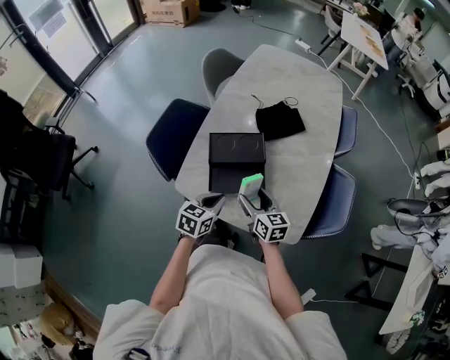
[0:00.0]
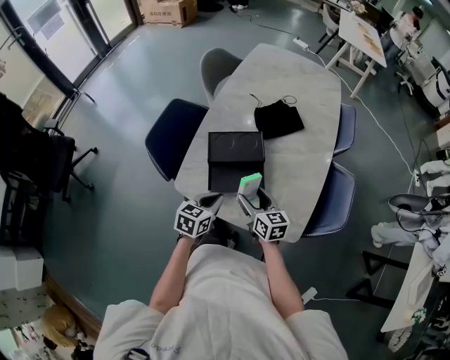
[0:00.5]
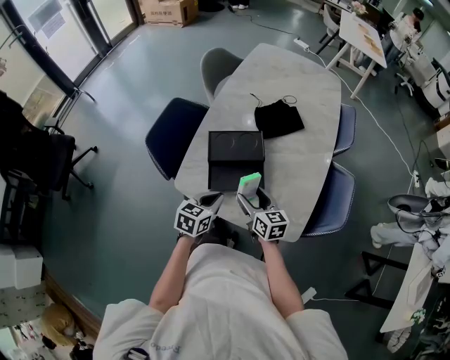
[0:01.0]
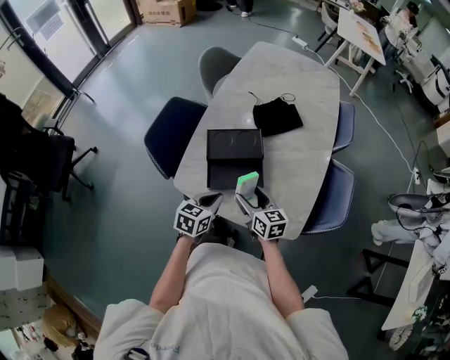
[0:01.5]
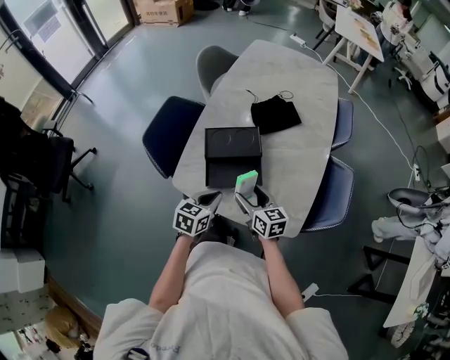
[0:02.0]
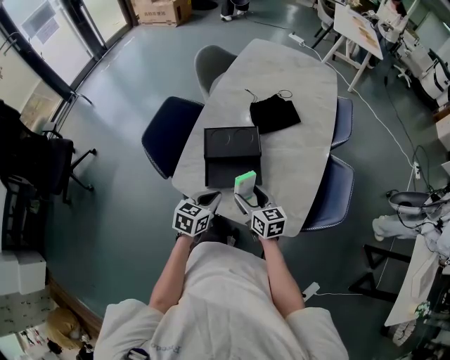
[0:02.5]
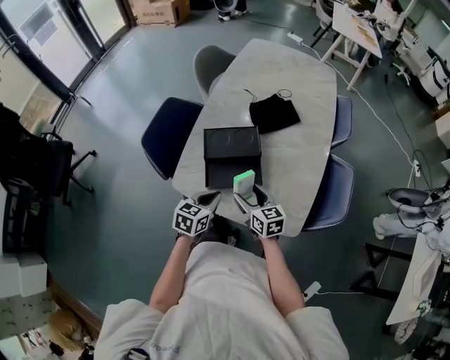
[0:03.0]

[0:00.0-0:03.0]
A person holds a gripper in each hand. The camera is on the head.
0:00.0 to 0:01.5: The two grippers keep their place.
0:01.5 to 0:03.0: The two grippers keep their place.

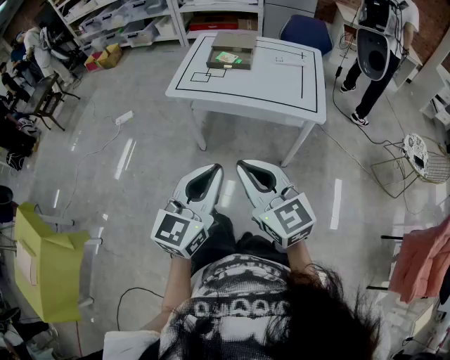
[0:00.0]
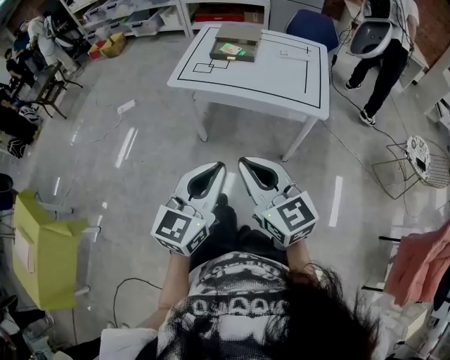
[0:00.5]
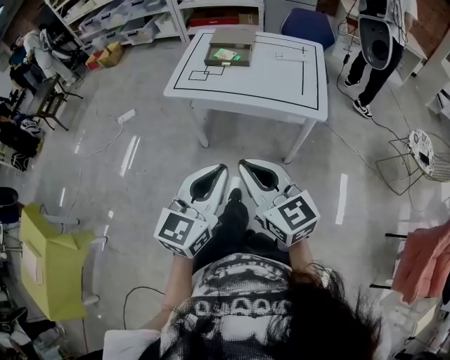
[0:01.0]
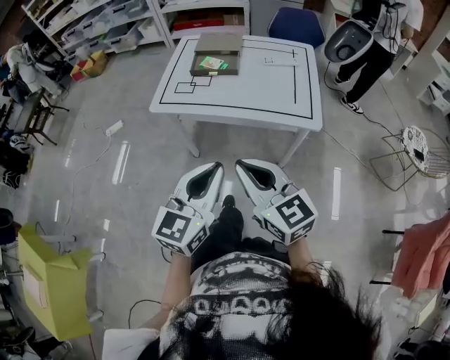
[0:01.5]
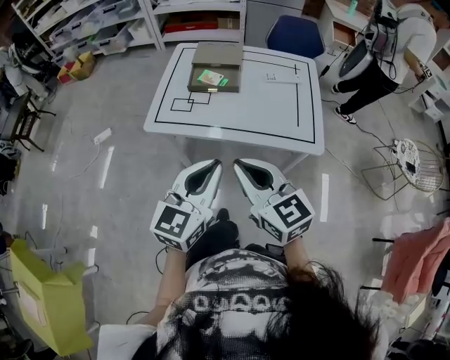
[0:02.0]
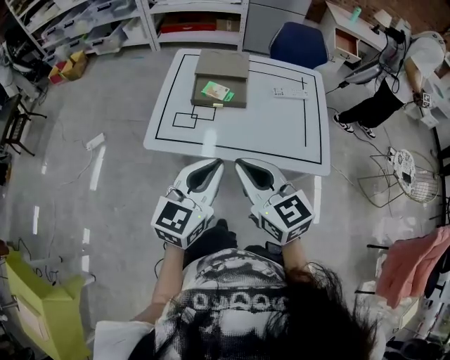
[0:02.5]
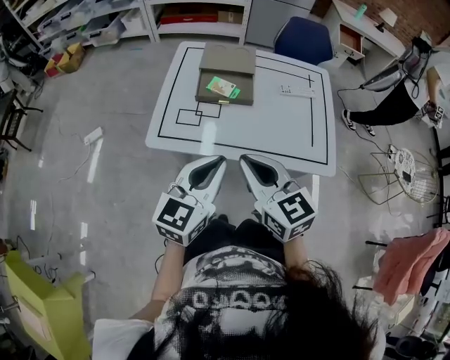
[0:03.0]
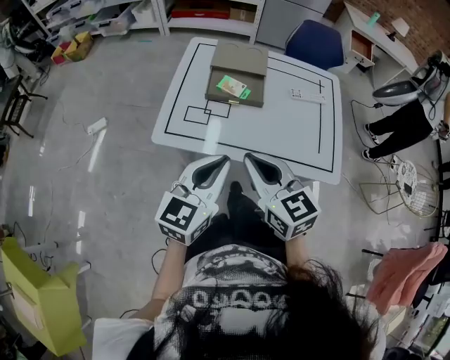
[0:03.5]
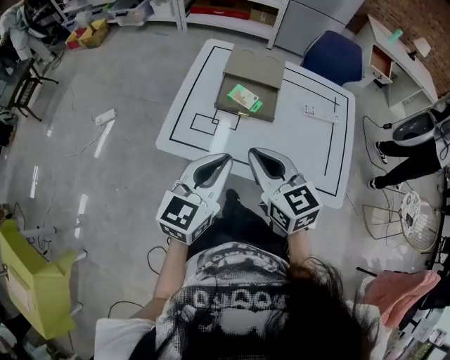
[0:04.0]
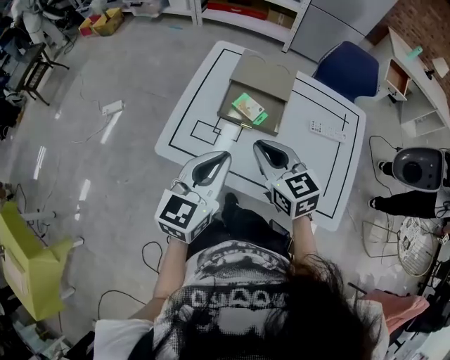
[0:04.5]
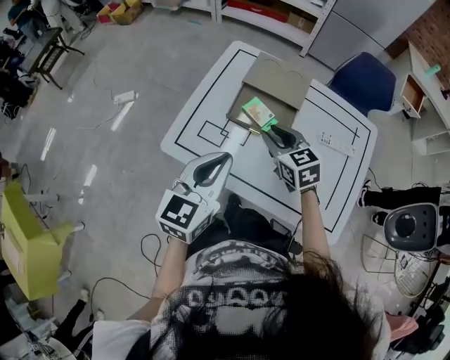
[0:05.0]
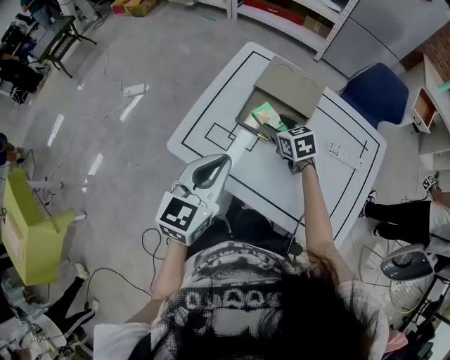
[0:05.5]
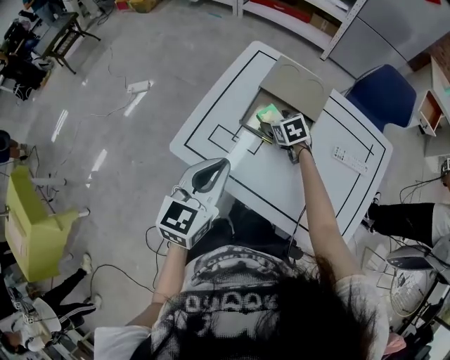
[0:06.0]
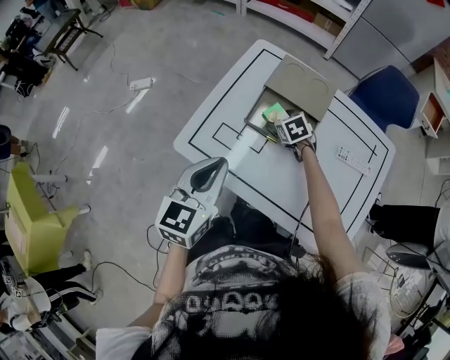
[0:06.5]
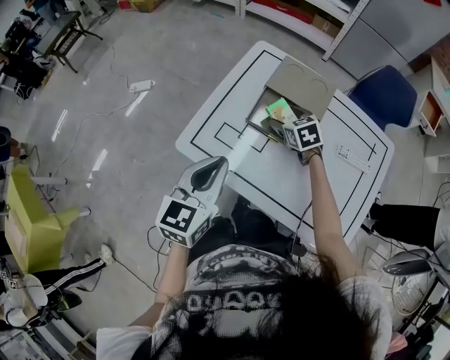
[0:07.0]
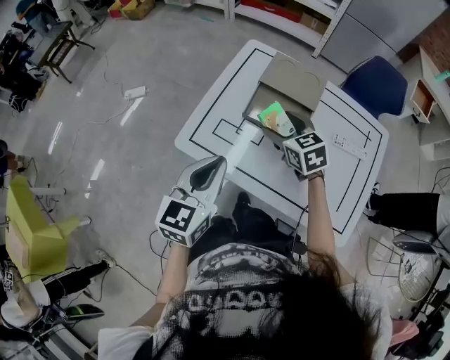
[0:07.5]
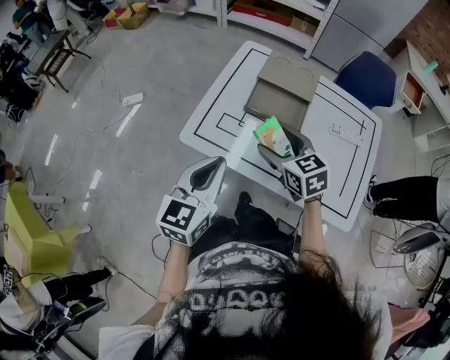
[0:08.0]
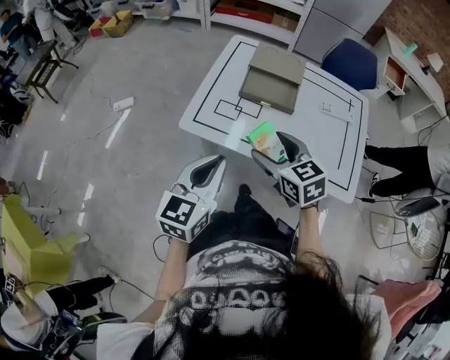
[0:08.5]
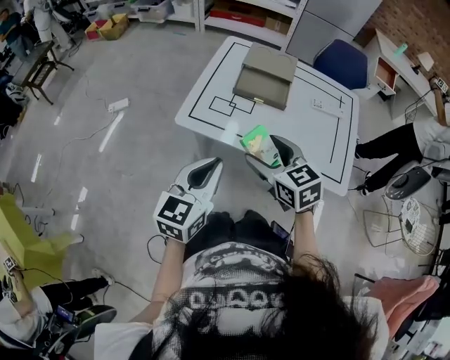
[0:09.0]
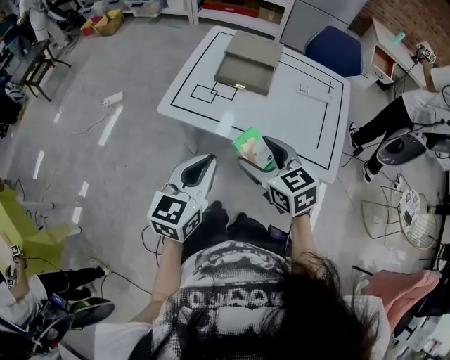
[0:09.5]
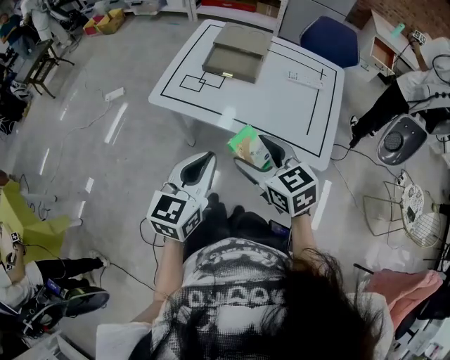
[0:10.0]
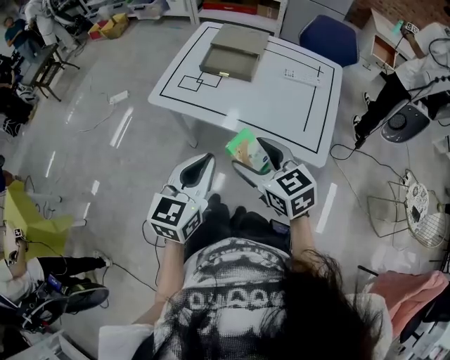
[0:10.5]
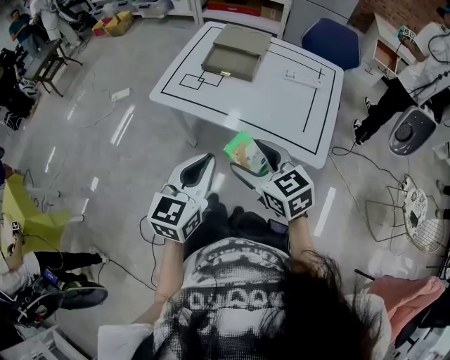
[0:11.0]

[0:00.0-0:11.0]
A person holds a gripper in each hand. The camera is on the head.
0:00.0 to 0:02.0: The grippers both shift forward by roughly 25 cm.
0:02.0 to 0:03.5: Both grippers move forward and to the left, some 20 cm.
0:03.5 to 0:05.5: The right gripper shifts some 40 cm forward and downward, turns by approximately 30 degrees, and opens. The left gripper heads forward, covering approximately 15 cm, and changes its angle by roughly 20 degrees.
0:05.5 to 0:07.5: The right gripper heads upward and backward, covering some 10 cm, while the left gripper changes place by some 5 cm.
0:07.5 to 0:09.0: The left gripper is displaced backward by some 20 cm. Meanwhile the right gripper is displaced backward by roughly 30 cm.
0:09.0 to 0:11.0: The left gripper heads to the right and backward, covering approximately 20 cm, while the right gripper shifts approximately 20 cm backward and to the right.

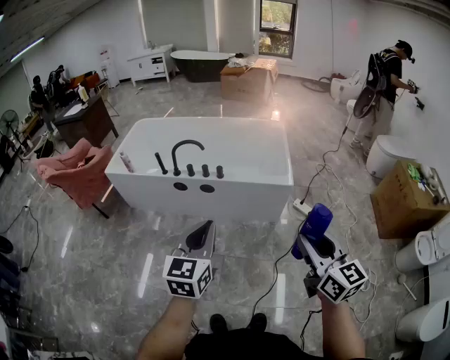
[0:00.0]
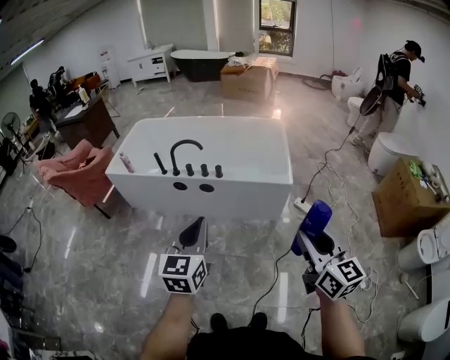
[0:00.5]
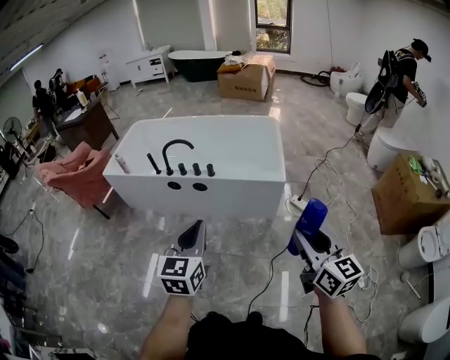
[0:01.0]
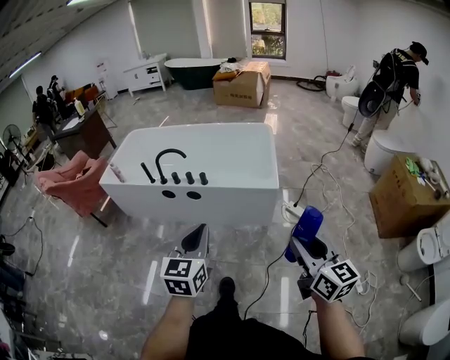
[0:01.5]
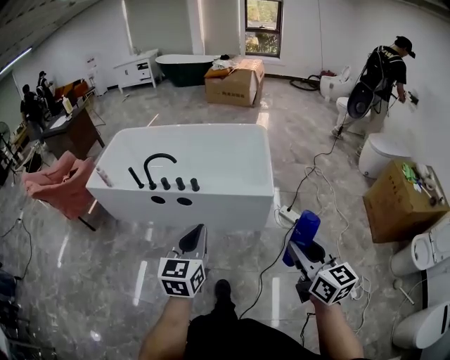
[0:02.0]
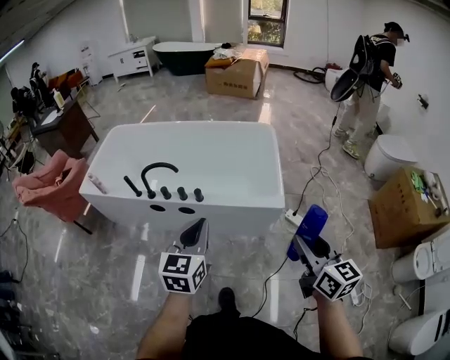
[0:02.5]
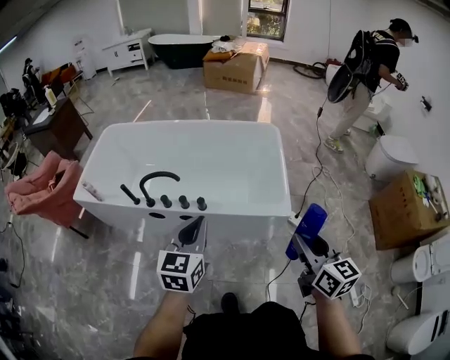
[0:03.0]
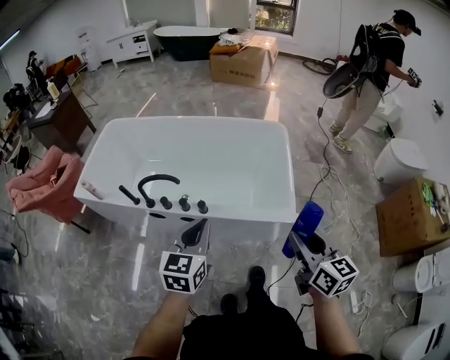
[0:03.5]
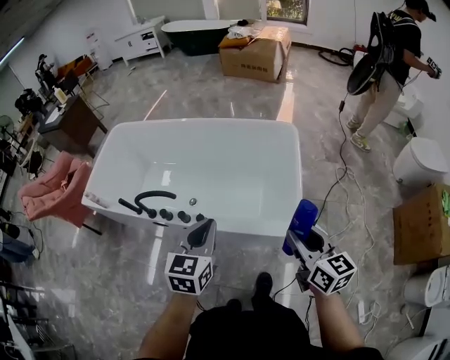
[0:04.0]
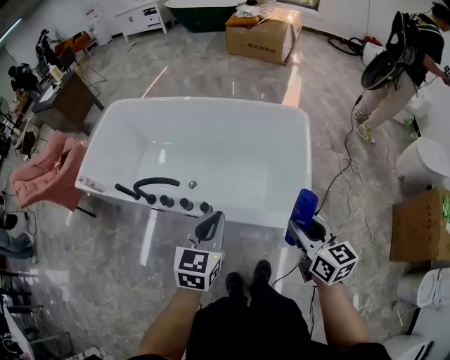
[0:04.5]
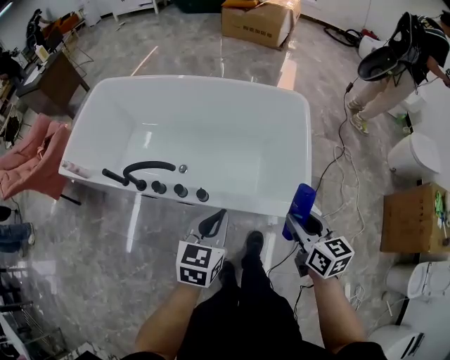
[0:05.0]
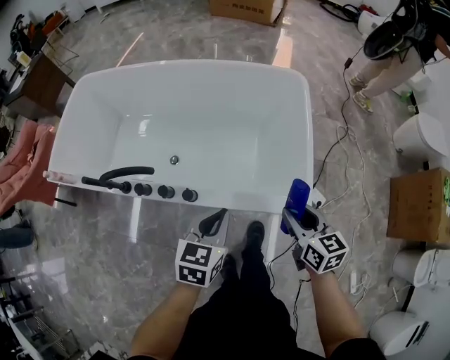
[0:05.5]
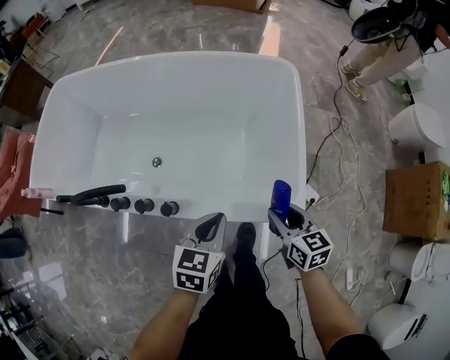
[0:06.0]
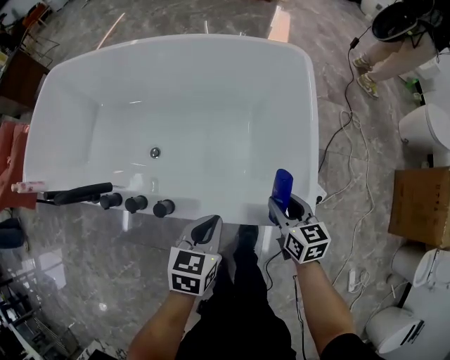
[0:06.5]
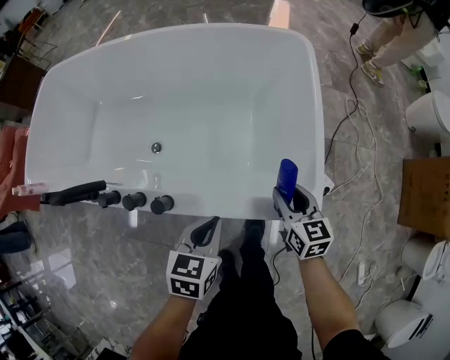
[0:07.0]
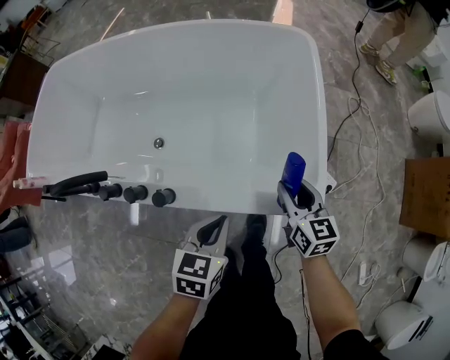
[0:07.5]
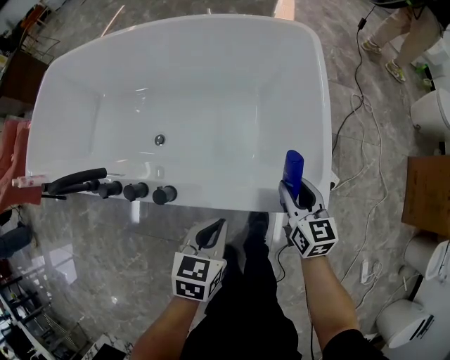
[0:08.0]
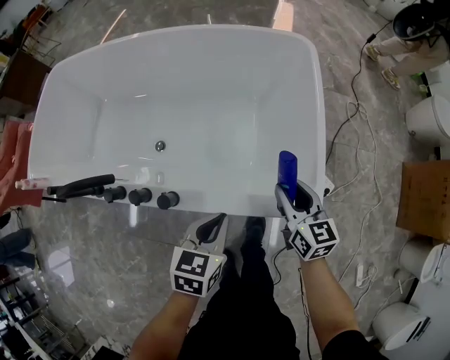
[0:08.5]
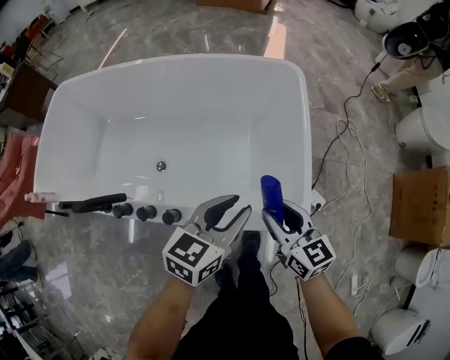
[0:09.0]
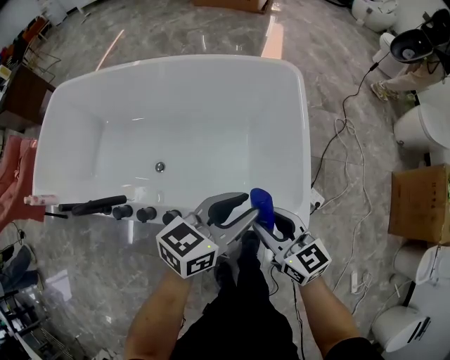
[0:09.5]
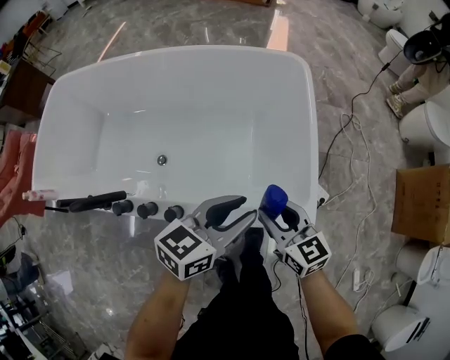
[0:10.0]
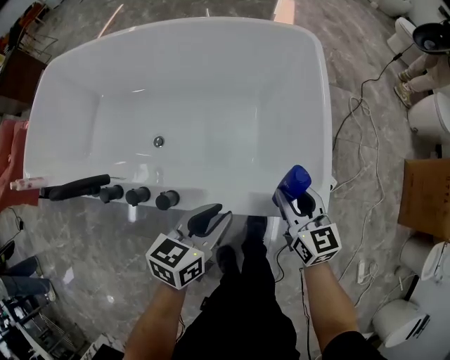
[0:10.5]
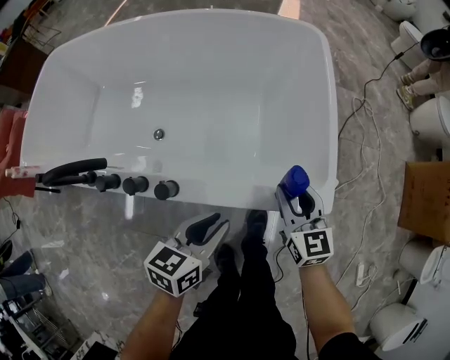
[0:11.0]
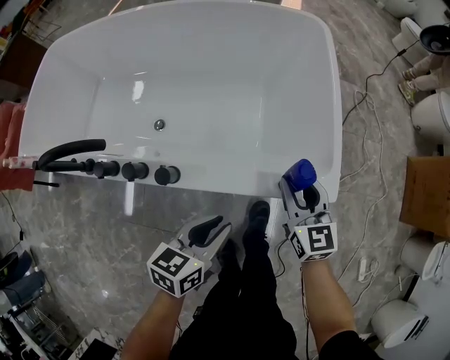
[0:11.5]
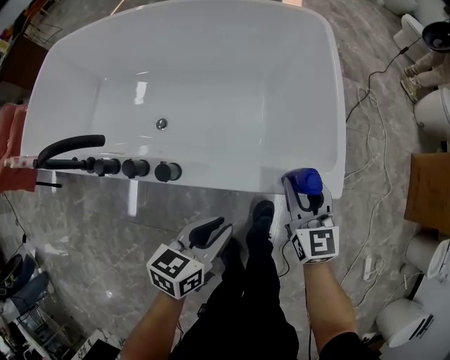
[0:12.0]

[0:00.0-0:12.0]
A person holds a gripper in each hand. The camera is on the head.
0:00.0 to 0:02.0: Both grippers travel together to the right and forward, about 15 cm.
0:02.0 to 0:04.0: Both grippers move forward, some 40 cm.
0:04.0 to 0:06.0: The left gripper travels downward by approximately 25 cm, and swivels approximately 20 degrees. Meanwhile the right gripper heads downward and forward, covering some 30 cm, and rotates roughly 20 degrees.
0:06.0 to 0:08.0: The two grippers go some 10 cm downward.
0:08.0 to 0:10.0: The right gripper travels upward and to the left by some 10 cm. Meanwhile the left gripper travels upward and forward by about 20 cm, turns by about 30 degrees, and opens up.
0:10.0 to 0:12.0: The right gripper is displaced downward by roughly 10 cm, and turns by about 20 degrees. Meanwhile the left gripper is displaced downward and backward by some 25 cm.
